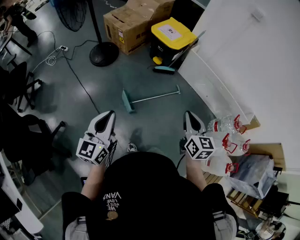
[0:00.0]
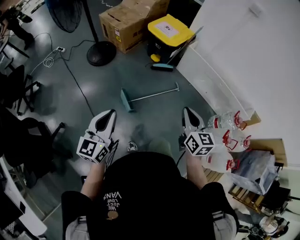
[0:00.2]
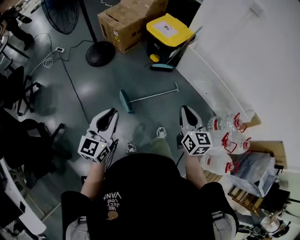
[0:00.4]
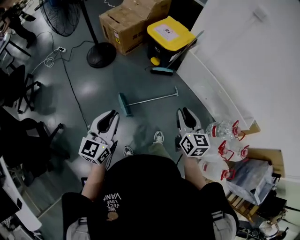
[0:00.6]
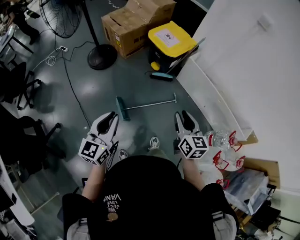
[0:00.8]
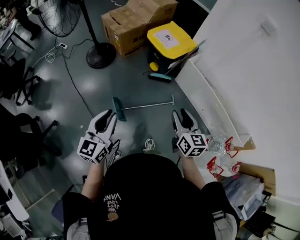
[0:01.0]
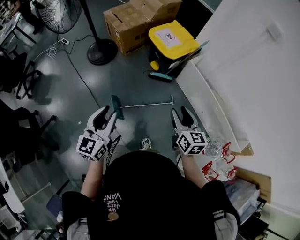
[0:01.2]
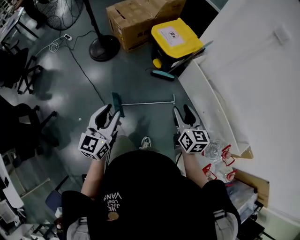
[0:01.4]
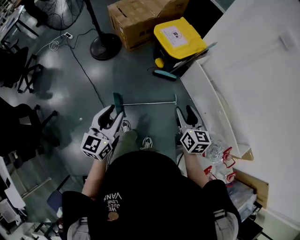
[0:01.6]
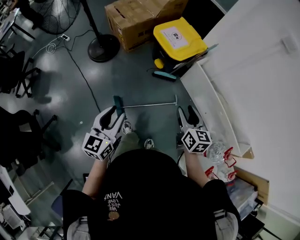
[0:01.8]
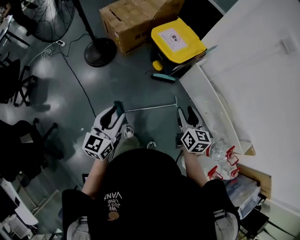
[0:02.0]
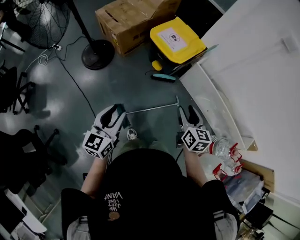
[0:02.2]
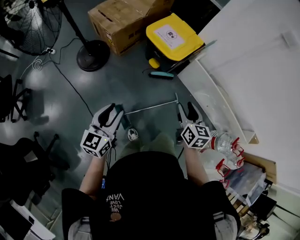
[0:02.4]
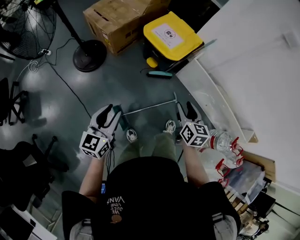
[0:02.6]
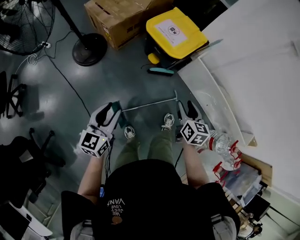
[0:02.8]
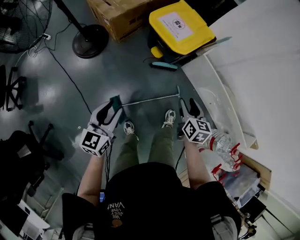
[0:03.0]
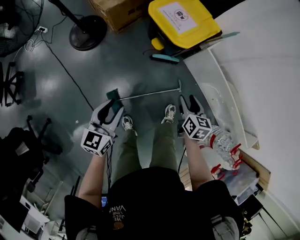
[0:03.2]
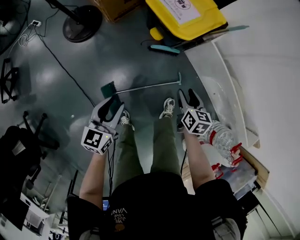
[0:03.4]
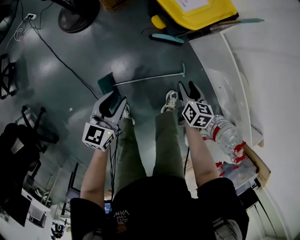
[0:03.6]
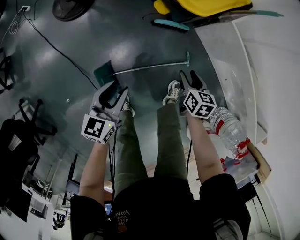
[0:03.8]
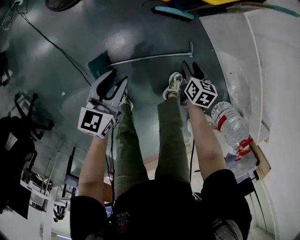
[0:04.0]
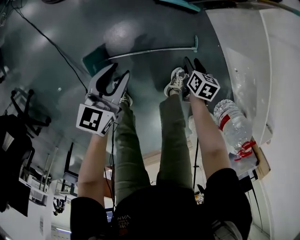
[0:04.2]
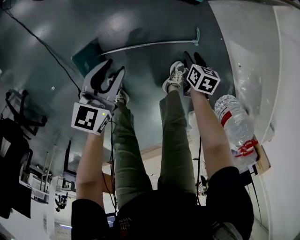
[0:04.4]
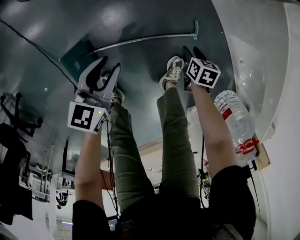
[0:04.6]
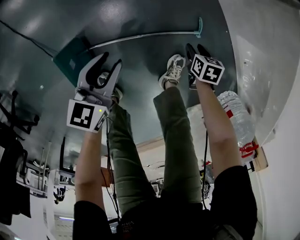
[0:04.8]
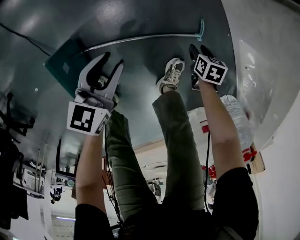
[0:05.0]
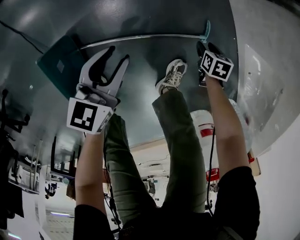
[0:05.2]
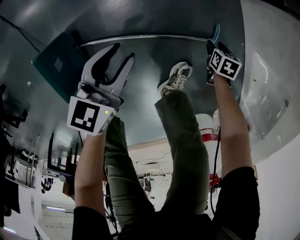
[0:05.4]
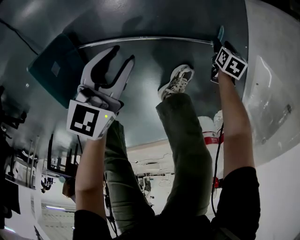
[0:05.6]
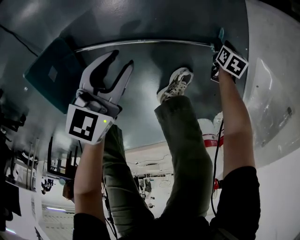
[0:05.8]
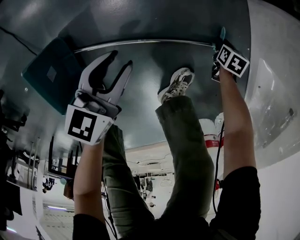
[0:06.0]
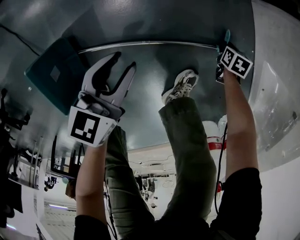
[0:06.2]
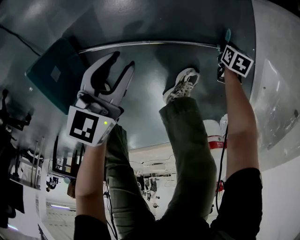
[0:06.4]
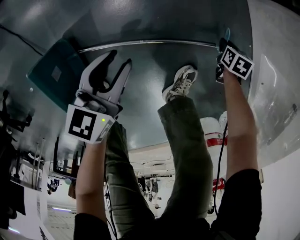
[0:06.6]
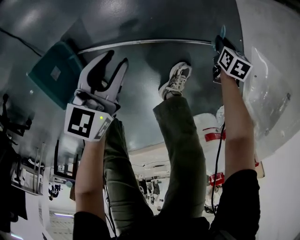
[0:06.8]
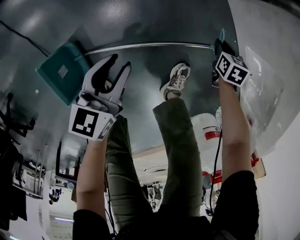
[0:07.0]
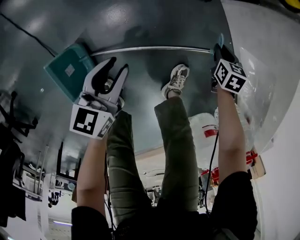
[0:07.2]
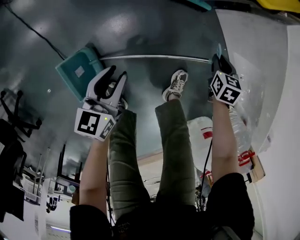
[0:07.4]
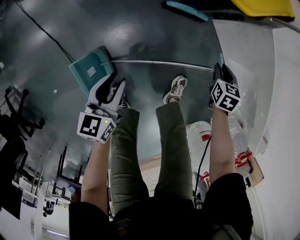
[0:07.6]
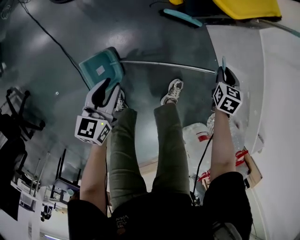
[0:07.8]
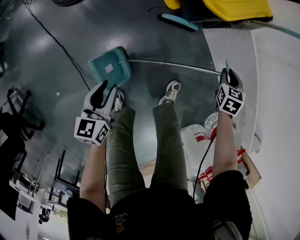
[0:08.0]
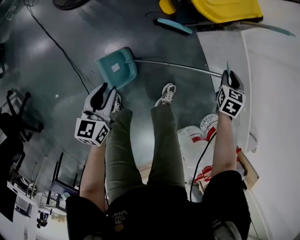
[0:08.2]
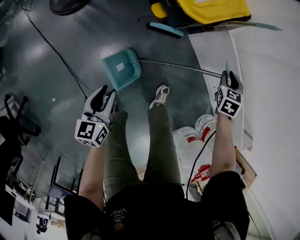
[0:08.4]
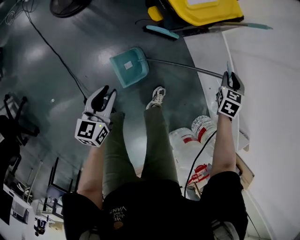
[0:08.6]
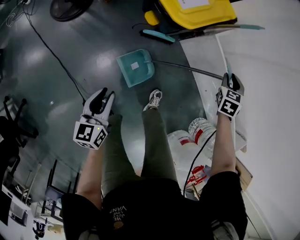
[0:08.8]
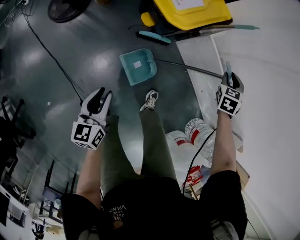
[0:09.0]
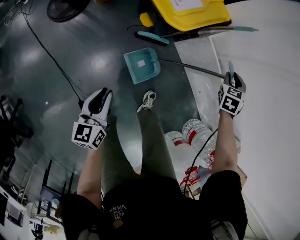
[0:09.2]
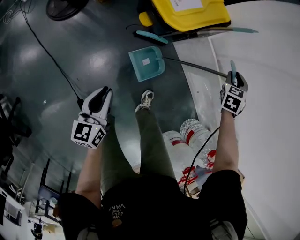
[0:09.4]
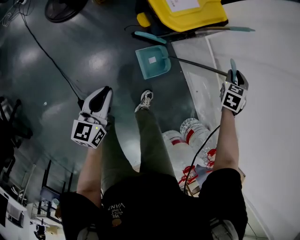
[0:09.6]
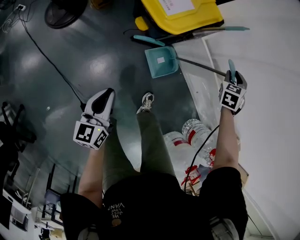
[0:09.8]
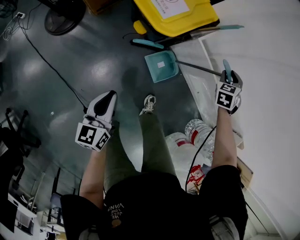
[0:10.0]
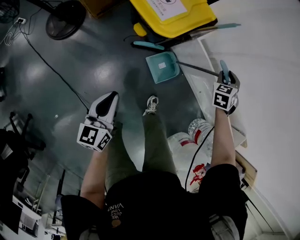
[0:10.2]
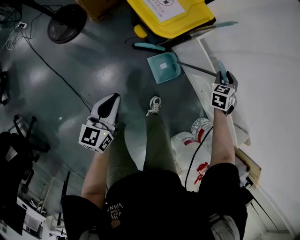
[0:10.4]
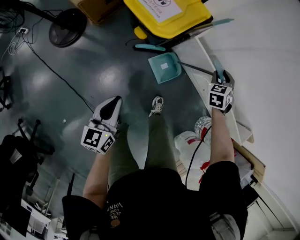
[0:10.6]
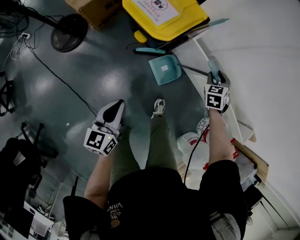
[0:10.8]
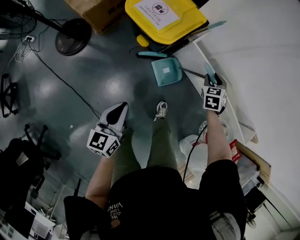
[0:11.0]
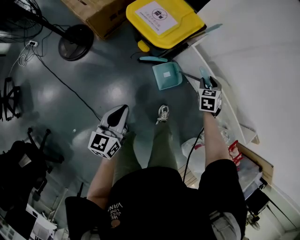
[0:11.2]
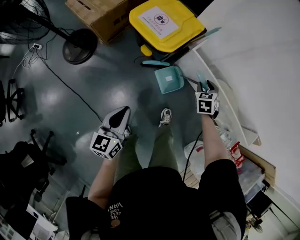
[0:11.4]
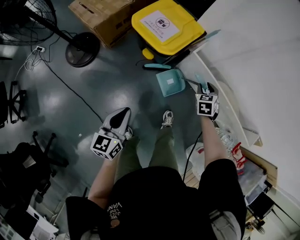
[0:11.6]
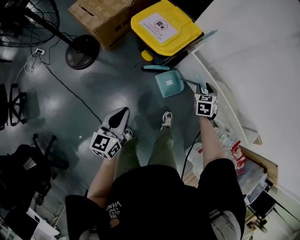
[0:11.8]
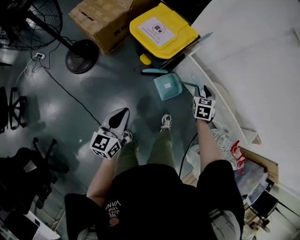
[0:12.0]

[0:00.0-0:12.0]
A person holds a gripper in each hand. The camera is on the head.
0:00.0 to 0:01.6: Both grippers move forward and to the right, about 25 cm. The right gripper opens its fingers. The left gripper opens up.
0:01.6 to 0:03.0: The right gripper is displaced forward and downward by approximately 20 cm, while the left gripper moves forward, downward and to the left, roughly 20 cm.
0:03.0 to 0:04.4: Both grippers move downward, some 40 cm. The right gripper points its fingers some 30 degrees further downward.
0:04.4 to 0:06.0: Both grippers move downward, roughly 25 cm.
0:06.0 to 0:07.6: The left gripper goes some 20 cm upward; the right gripper moves upward, roughly 35 cm, and turns by roughly 20 degrees.
0:07.6 to 0:09.0: The right gripper shifts roughly 25 cm upward, and swivels roughly 30 degrees; the left gripper is displaced upward by some 15 cm.
0:09.0 to 0:10.4: The left gripper heads upward and forward, covering about 10 cm, and closes.
0:10.4 to 0:12.0: The left gripper is displaced upward and backward by roughly 10 cm. The right gripper travels backward, upward and to the left by about 15 cm, and rotates some 20 degrees.

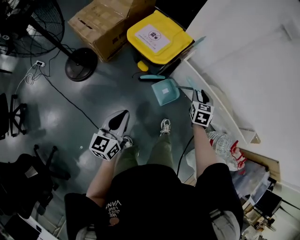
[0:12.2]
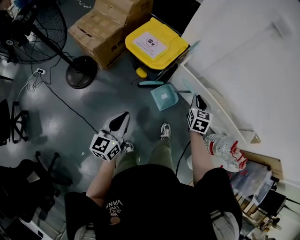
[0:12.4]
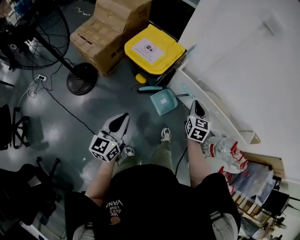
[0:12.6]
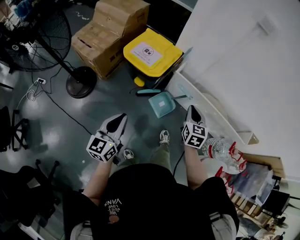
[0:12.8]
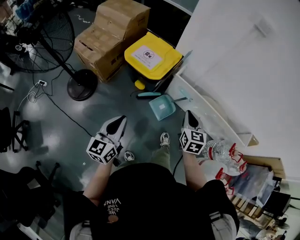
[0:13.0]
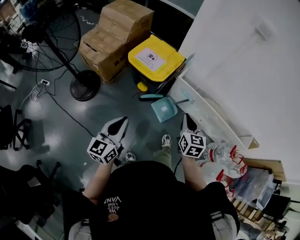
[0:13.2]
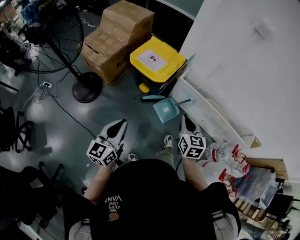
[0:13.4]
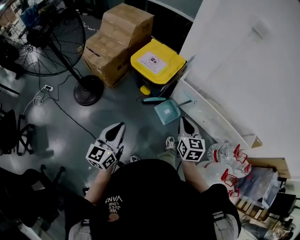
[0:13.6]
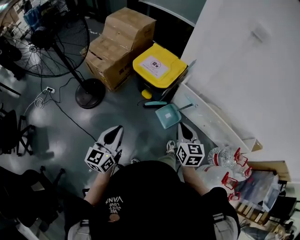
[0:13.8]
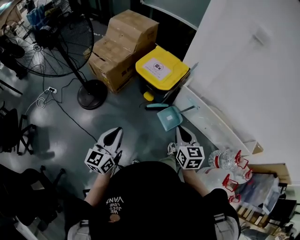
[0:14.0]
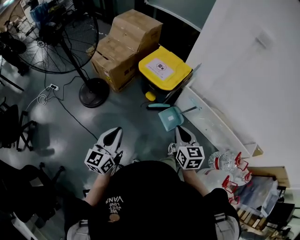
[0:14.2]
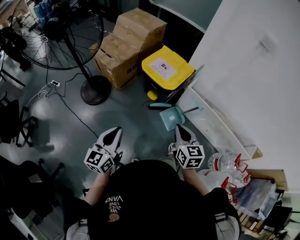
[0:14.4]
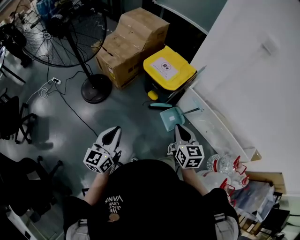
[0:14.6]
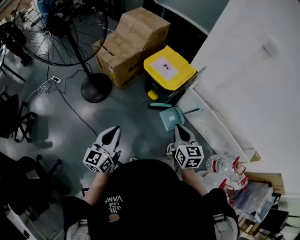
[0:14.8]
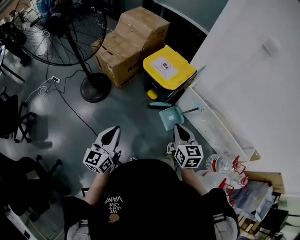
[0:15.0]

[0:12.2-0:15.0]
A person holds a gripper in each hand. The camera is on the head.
0:12.2 to 0:13.6: The left gripper moves upward and backward, some 10 cm. Meanwhile the right gripper moves backward, upward and to the left, some 25 cm, rotates some 20 degrees, and closes up.
0:13.6 to 0:15.0: The grippers both shift to the left by about 10 cm.

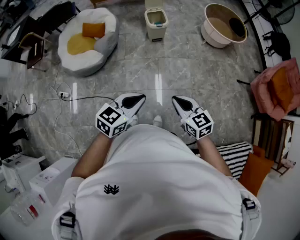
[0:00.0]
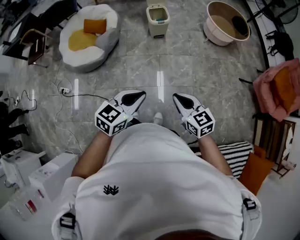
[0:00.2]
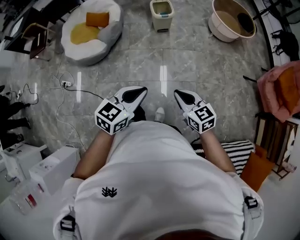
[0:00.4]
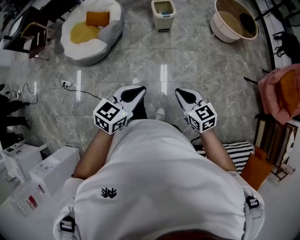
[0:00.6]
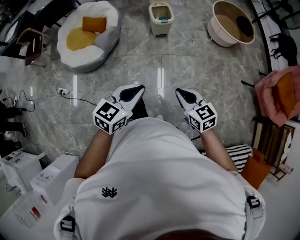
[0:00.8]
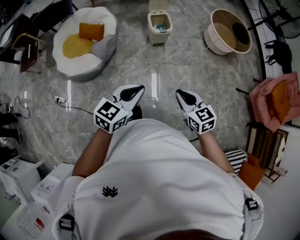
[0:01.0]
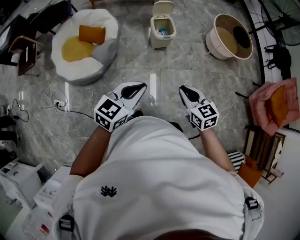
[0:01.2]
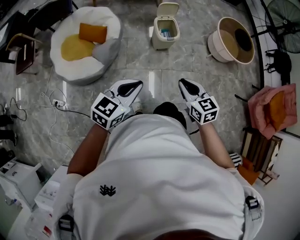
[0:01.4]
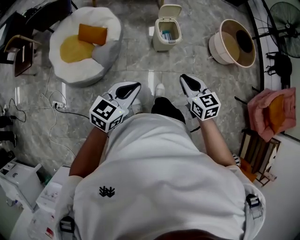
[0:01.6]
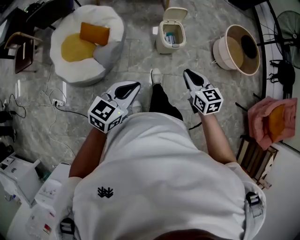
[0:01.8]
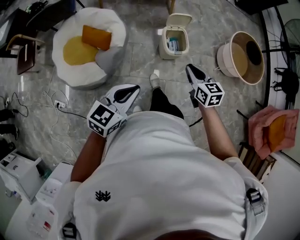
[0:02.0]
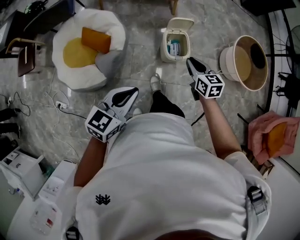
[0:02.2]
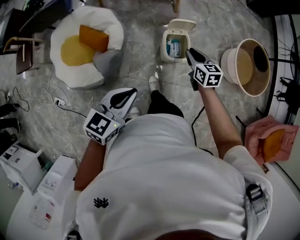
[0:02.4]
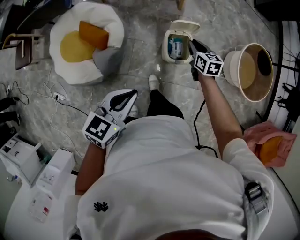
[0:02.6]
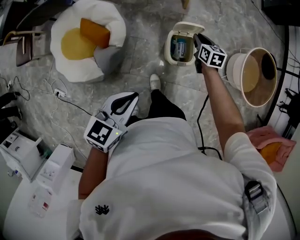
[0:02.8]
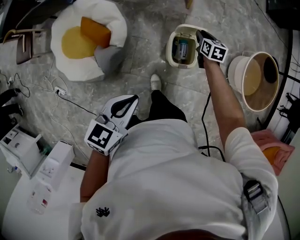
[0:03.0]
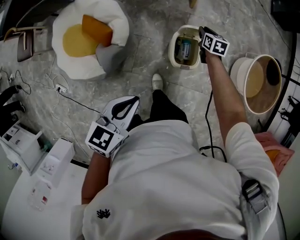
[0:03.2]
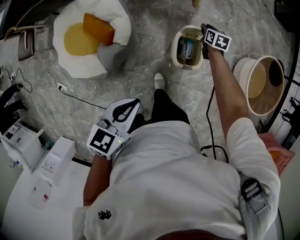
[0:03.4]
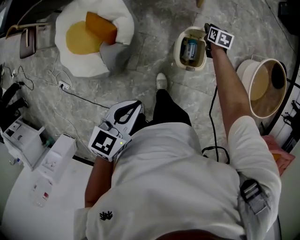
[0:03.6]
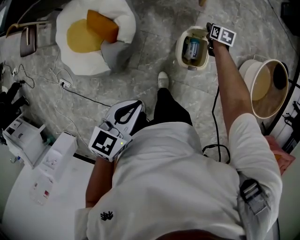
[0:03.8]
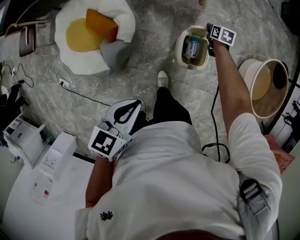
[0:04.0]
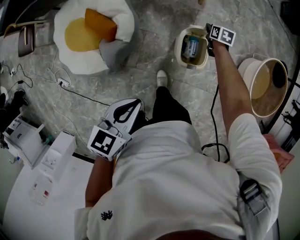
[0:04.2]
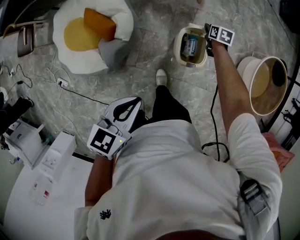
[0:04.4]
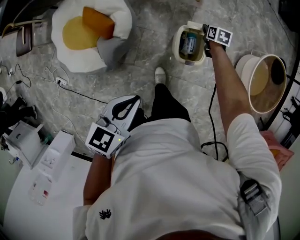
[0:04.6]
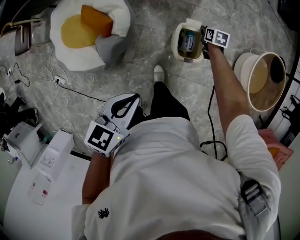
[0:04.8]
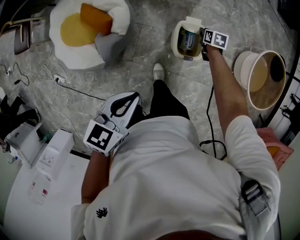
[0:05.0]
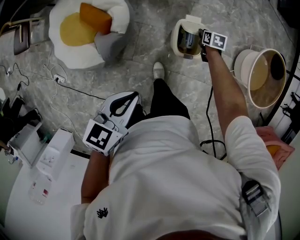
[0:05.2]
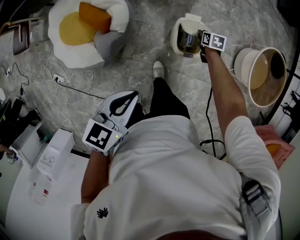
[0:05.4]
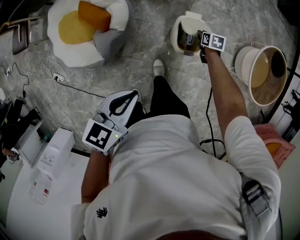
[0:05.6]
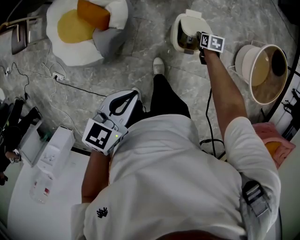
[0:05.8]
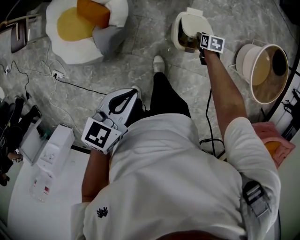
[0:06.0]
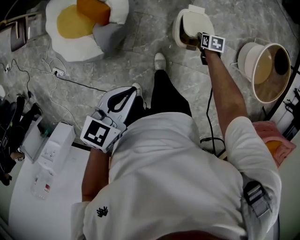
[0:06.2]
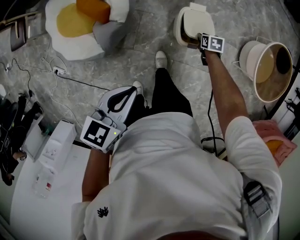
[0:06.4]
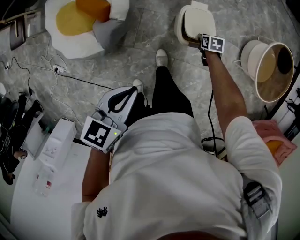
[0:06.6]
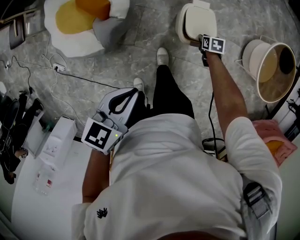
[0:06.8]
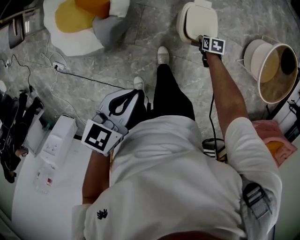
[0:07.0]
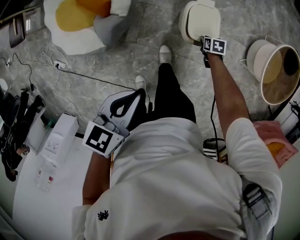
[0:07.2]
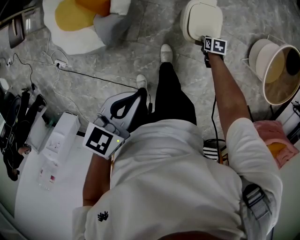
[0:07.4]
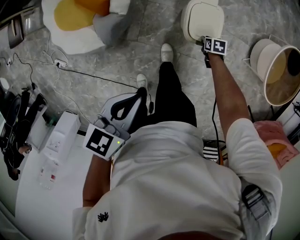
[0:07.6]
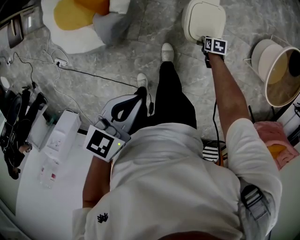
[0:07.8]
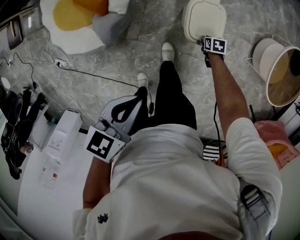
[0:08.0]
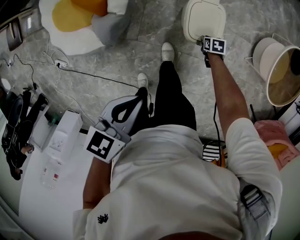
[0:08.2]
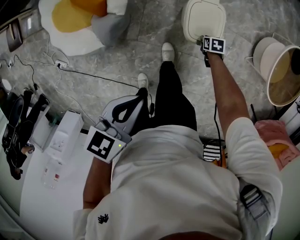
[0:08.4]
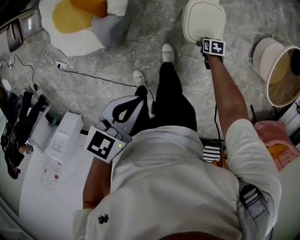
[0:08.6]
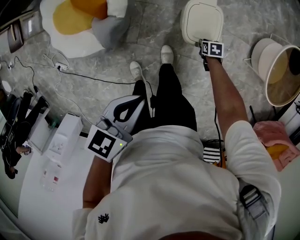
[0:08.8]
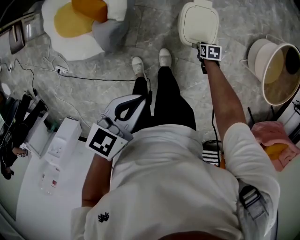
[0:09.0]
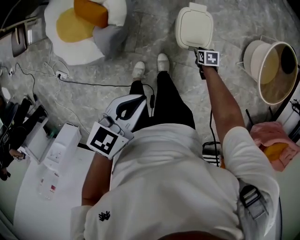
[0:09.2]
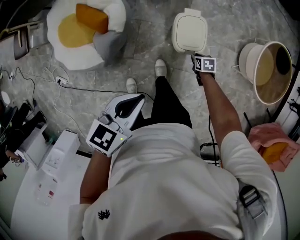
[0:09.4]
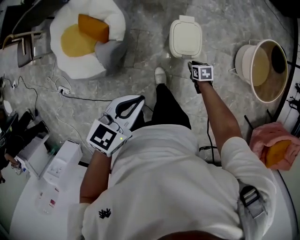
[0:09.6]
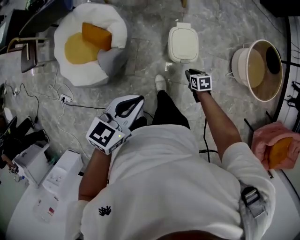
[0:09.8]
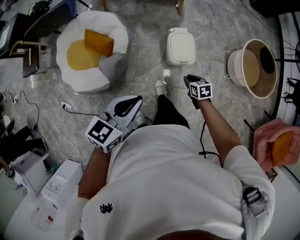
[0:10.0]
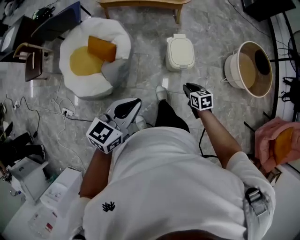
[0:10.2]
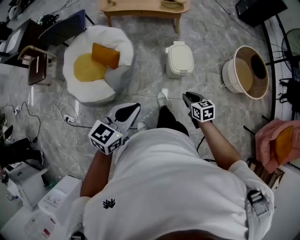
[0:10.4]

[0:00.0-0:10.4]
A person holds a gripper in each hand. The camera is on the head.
0:00.0 to 0:01.4: The left gripper heads forward and to the left, covering roughly 35 cm. Meanwhile the right gripper travels forward by approximately 30 cm.
0:01.4 to 0:03.0: The right gripper goes some 70 cm forward. The left gripper is displaced forward by roughly 35 cm, and turns by approximately 20 degrees.
0:03.0 to 0:04.4: The right gripper travels downward and forward by some 10 cm.
0:04.4 to 0:06.0: The right gripper shifts approximately 15 cm backward.
0:06.0 to 0:07.4: The right gripper goes some 15 cm downward and backward.
0:07.4 to 0:09.0: The grippers stay close to where they were, moving slightly.
0:09.0 to 0:10.4: The left gripper travels backward, upward and to the left by approximately 25 cm, and rotates some 30 degrees. The right gripper shifts roughly 40 cm upward and backward, and changes its angle by roughly 30 degrees.
